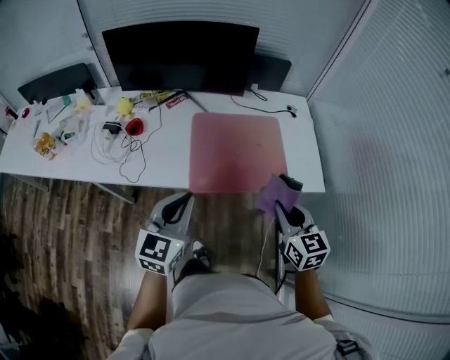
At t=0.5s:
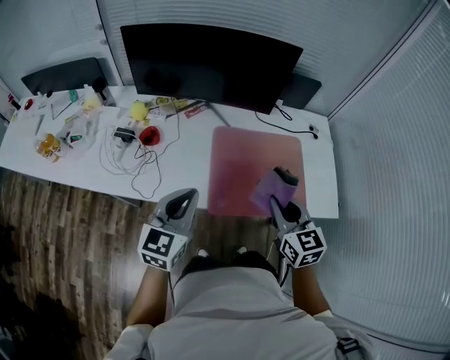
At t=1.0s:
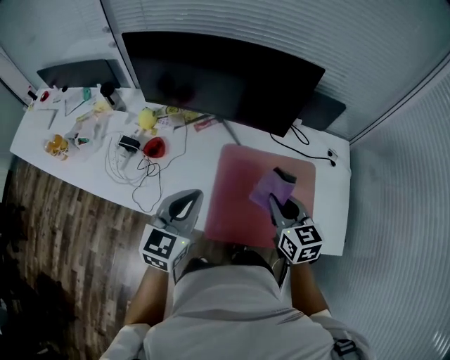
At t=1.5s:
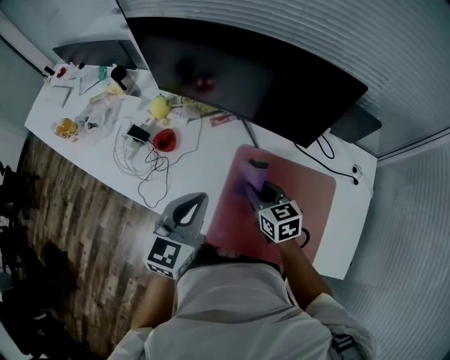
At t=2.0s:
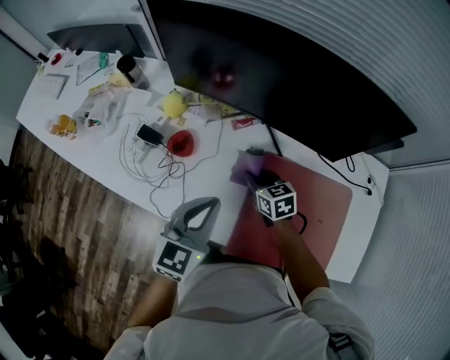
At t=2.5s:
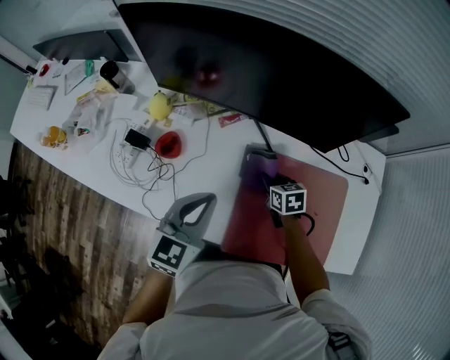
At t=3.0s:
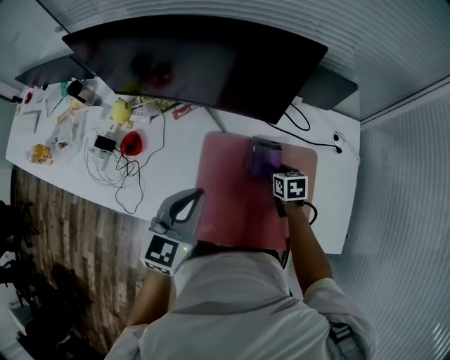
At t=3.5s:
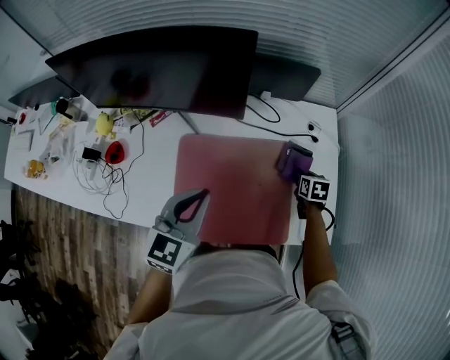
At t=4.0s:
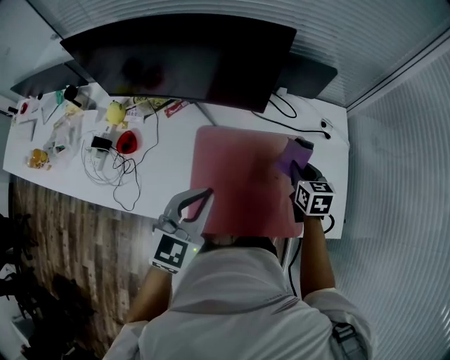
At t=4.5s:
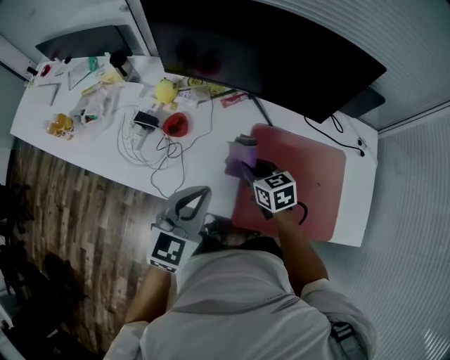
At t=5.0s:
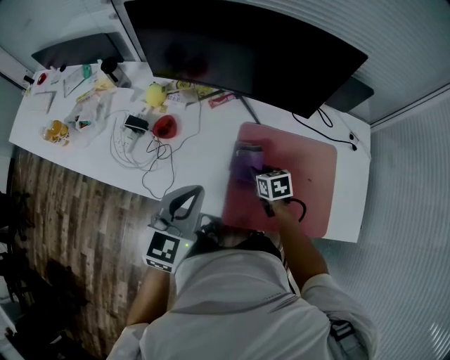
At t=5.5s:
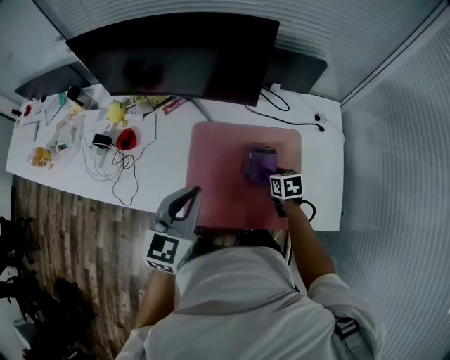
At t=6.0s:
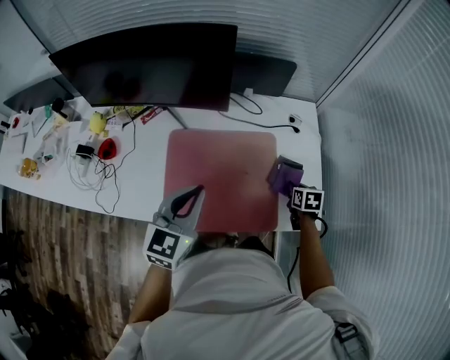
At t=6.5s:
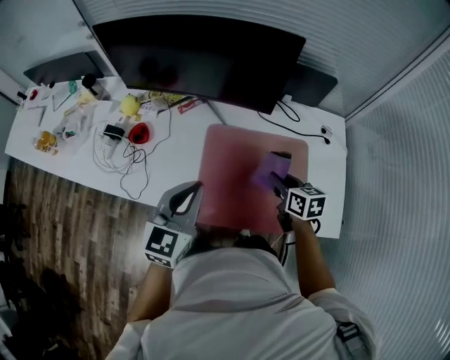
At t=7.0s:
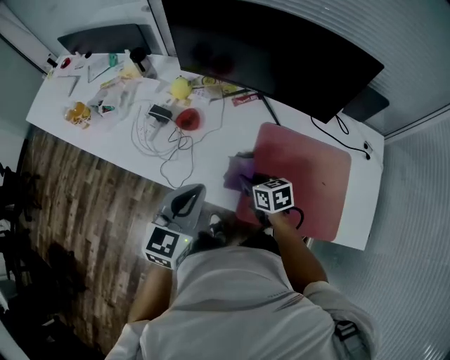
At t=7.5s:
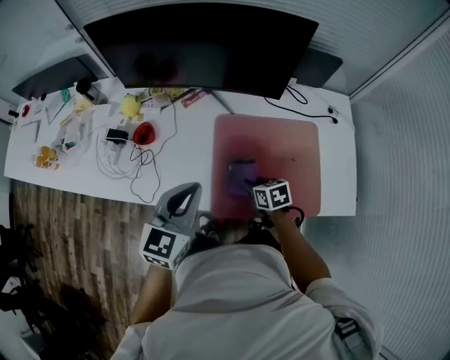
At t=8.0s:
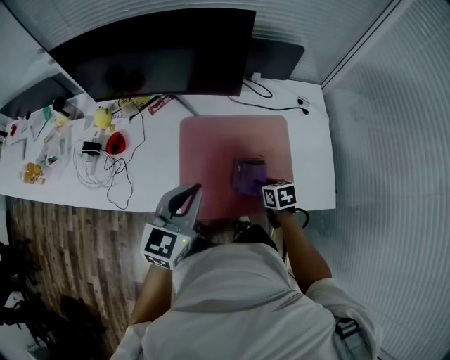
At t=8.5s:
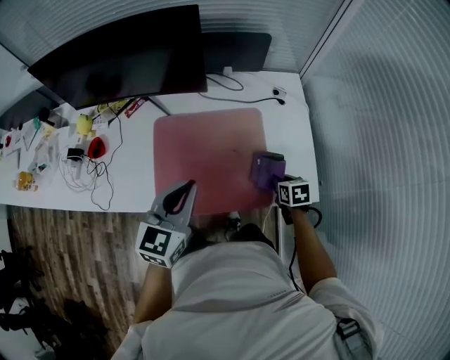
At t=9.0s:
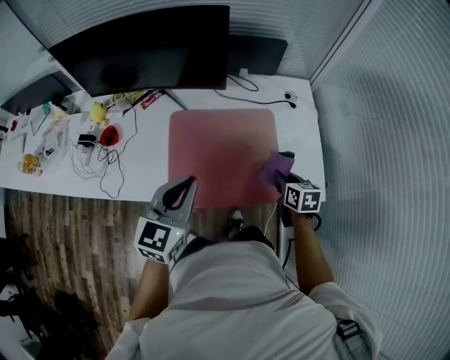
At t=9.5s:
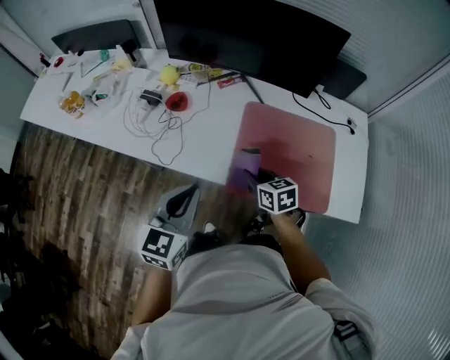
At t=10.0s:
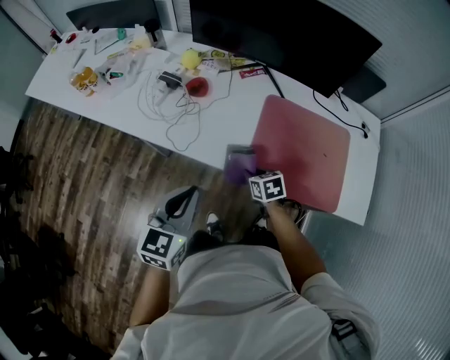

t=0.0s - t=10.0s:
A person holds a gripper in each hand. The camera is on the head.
t=0.0s - t=2.0s: The left gripper ends up roughly 35 cm from where it was. The right gripper changes place by about 60 cm, and turns by about 40 degrees.
t=2.0s - t=4.0s: The left gripper shifts by approximately 20 cm. Meanwhile the right gripper changes place by approximately 40 cm, and swivels approximately 30 degrees.
t=4.0s - t=6.0s: The right gripper heads downward and backward, covering about 15 cm, and travels to the left and back again, roughly 35 cm each way. Meanwhile the left gripper travels to the left and back again, approximately 20 cm each way.
t=6.0s - t=8.0s: The right gripper goes upward and returns, approximately 15 cm each way.
t=8.0s - t=10.0s: The right gripper goes upward and returns, roughly 10 cm each way, and turns by approximately 20 degrees. The left gripper shifts by about 30 cm, and changes its angle by approximately 20 degrees.

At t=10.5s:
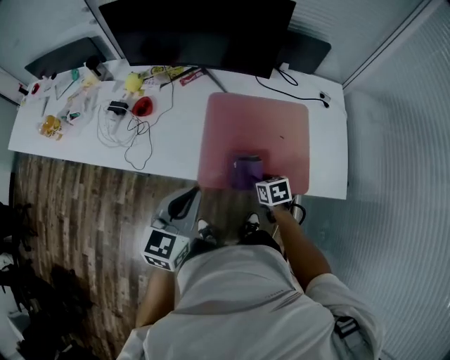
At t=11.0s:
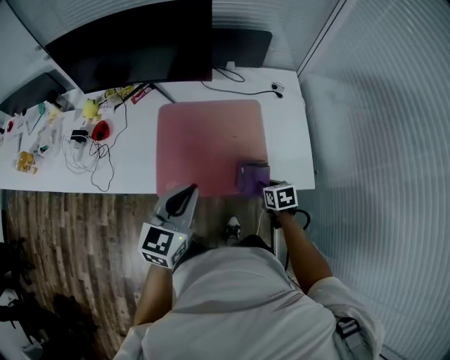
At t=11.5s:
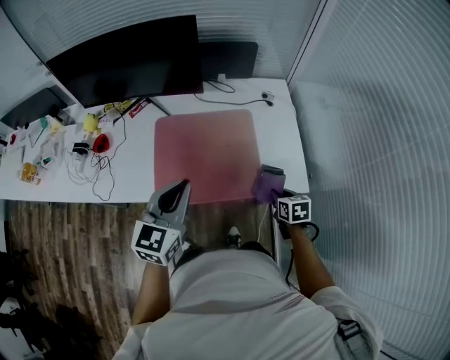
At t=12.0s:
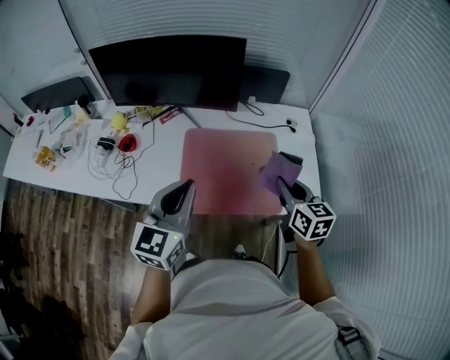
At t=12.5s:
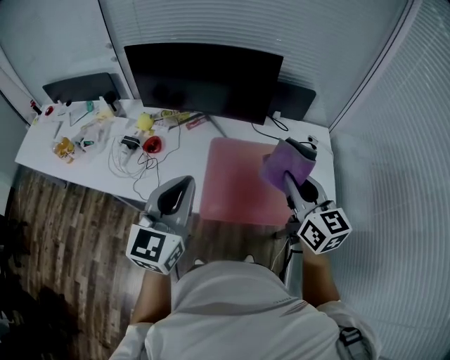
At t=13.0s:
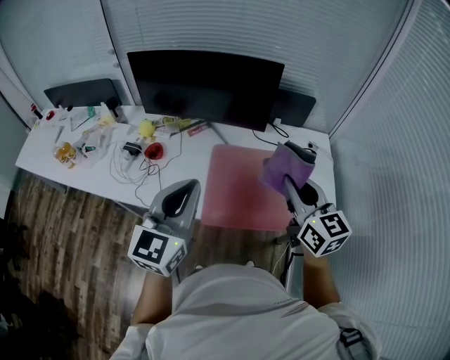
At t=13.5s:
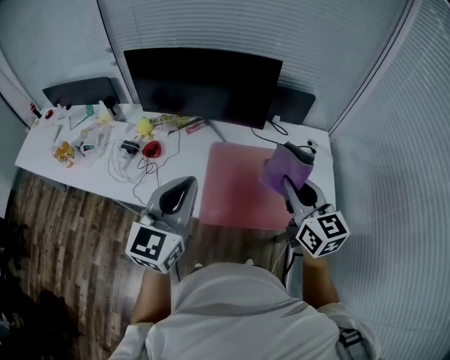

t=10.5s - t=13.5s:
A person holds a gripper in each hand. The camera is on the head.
t=10.5s - t=12.0s: The left gripper moves upward and to the right, some 15 cm, while the right gripper is displaced upward and to the right by some 30 cm, and tilts its fingers some 30 degrees upward.
t=12.0s - t=13.5s: The left gripper is displaced to the left and upward by some 10 cm. The right gripper travels upward and to the left by about 15 cm.

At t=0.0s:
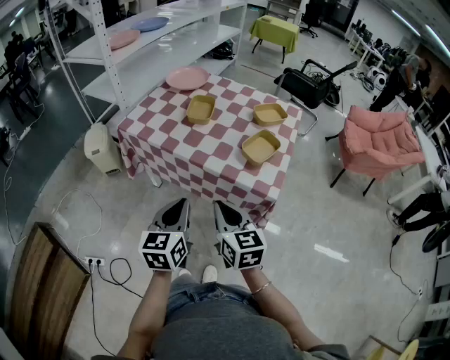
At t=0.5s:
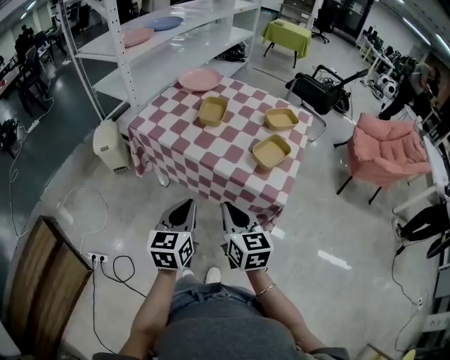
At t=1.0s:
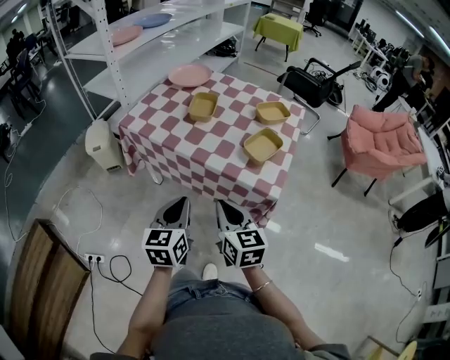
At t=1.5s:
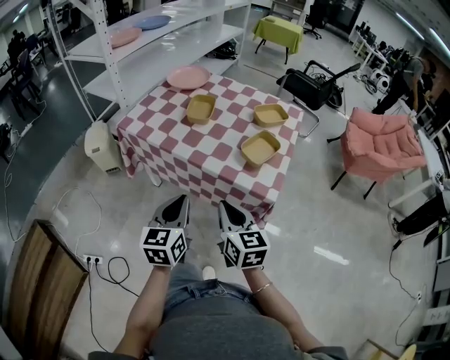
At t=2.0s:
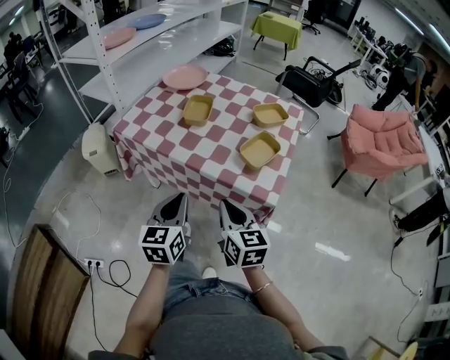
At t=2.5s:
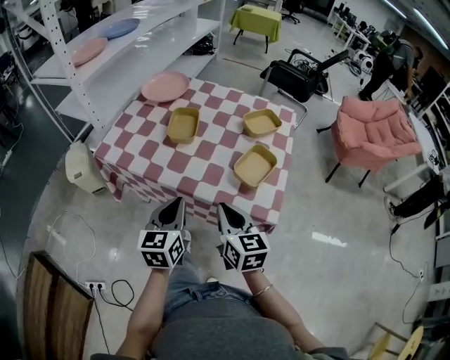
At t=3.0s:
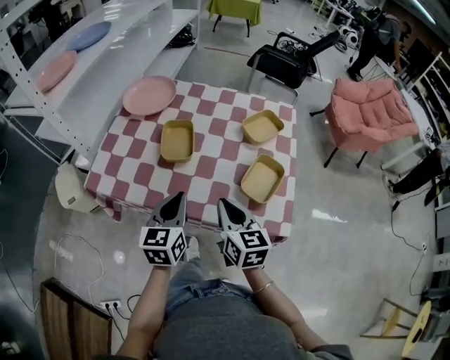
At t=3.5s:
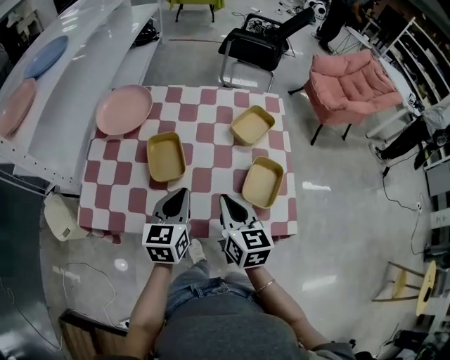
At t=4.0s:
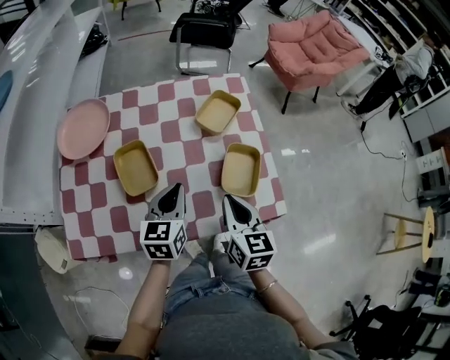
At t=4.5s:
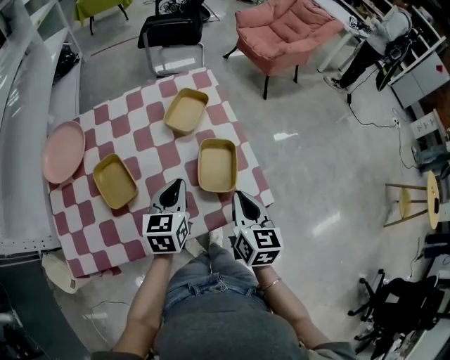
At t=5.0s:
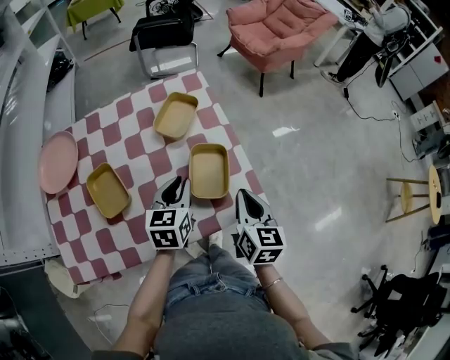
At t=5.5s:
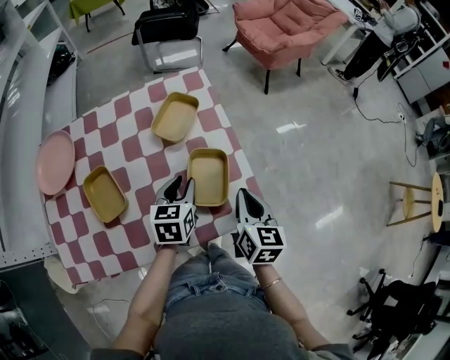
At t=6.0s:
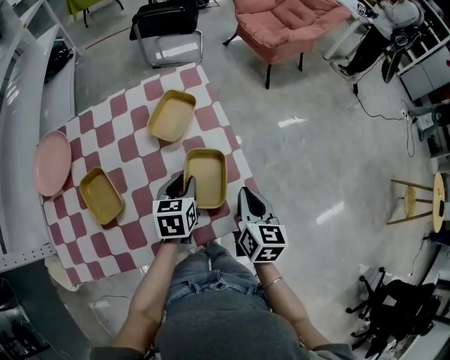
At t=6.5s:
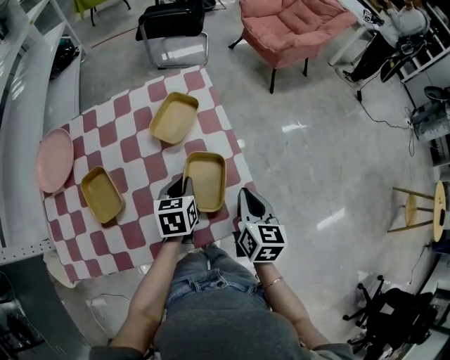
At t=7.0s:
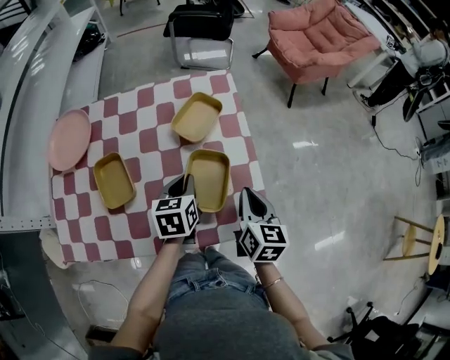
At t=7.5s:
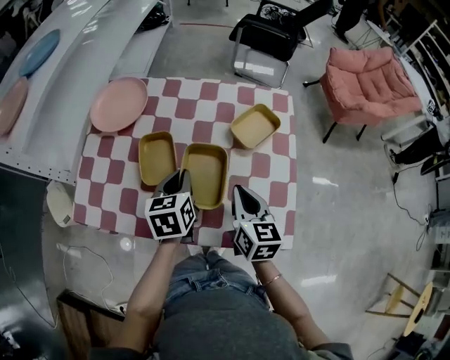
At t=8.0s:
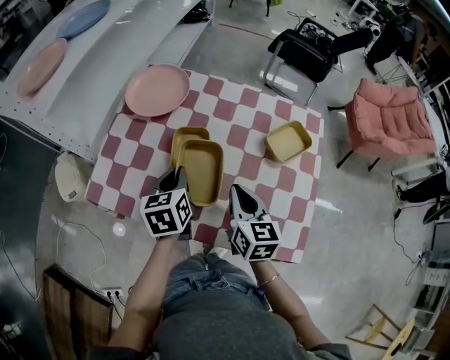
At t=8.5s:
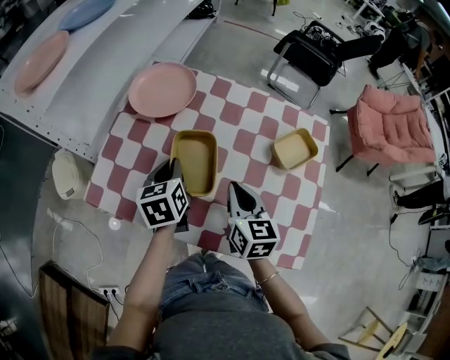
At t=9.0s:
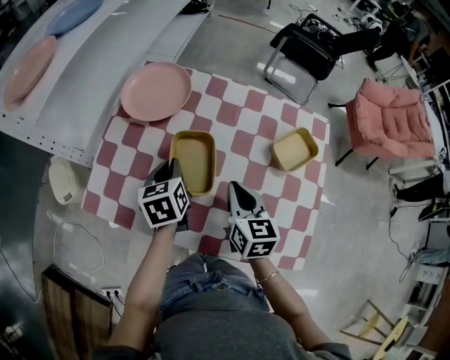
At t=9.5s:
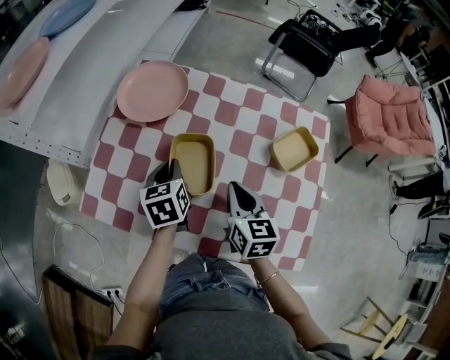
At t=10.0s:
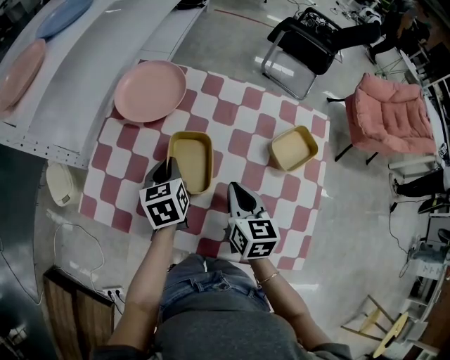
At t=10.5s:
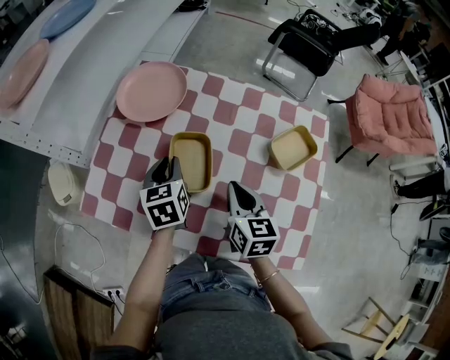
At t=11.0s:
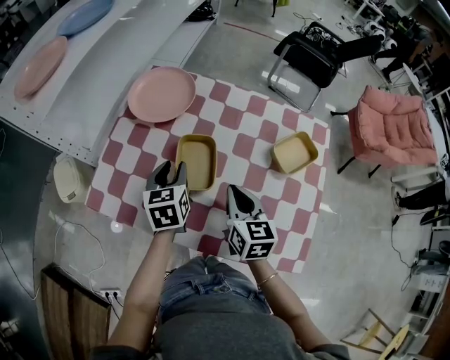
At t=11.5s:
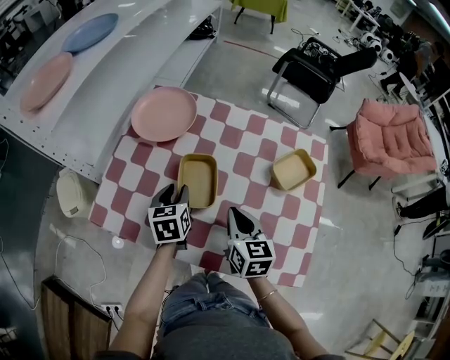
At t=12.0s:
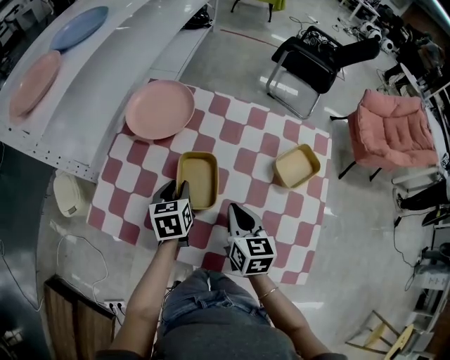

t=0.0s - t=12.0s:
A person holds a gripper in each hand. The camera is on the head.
t=0.0s - t=2.0s: The left gripper moves roughly 5 cm. The right gripper shifts by some 5 cm.
t=2.0s - t=4.0s: The left gripper moves about 35 cm, and swivels about 40 degrees. Meanwhile the right gripper ends up roughly 25 cm from where it was, and swivels some 40 degrees.
t=4.0s - t=6.0s: The left gripper moves to the right, forward and downward, about 20 cm, rotates about 20 degrees, and opens up. The right gripper travels to the right and forward by some 20 cm.
t=6.0s - t=8.0s: The right gripper ends up about 30 cm from where it was, and changes its angle by roughly 40 degrees, while the left gripper ends up roughly 30 cm from where it was, turns by about 50 degrees, and closes up.
t=8.0s - t=10.0s: Both grippers travel together forward, roughly 5 cm.
t=10.0s - t=12.0s: The left gripper opens.

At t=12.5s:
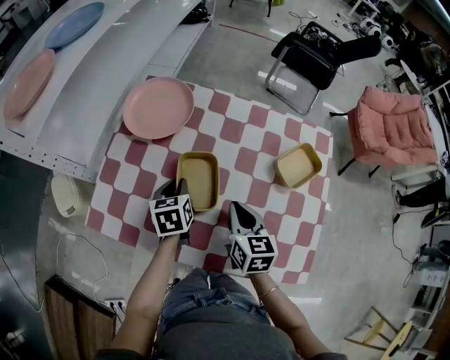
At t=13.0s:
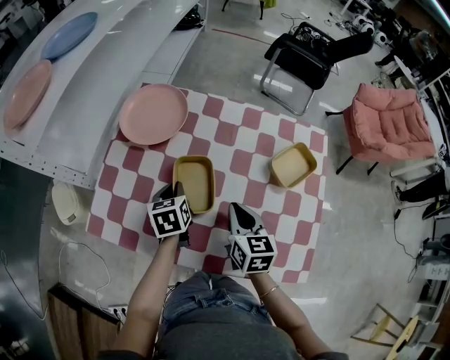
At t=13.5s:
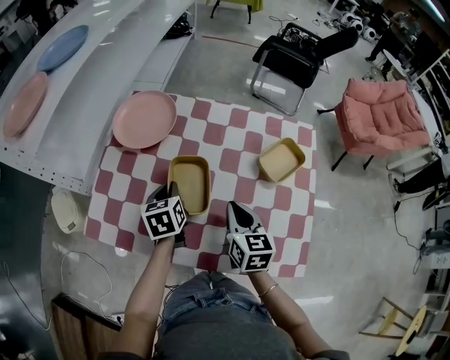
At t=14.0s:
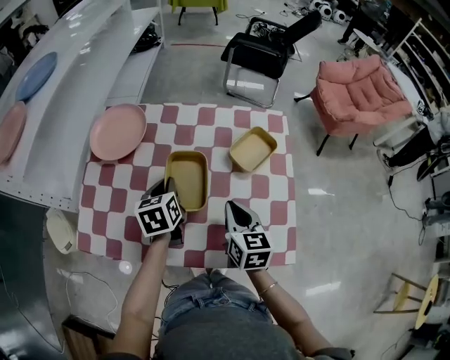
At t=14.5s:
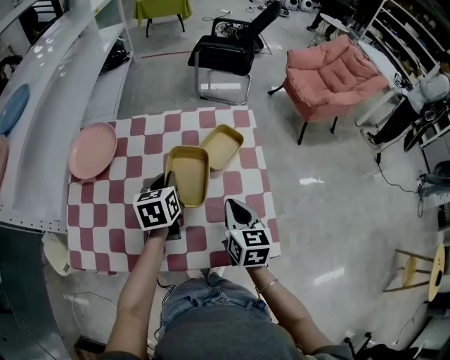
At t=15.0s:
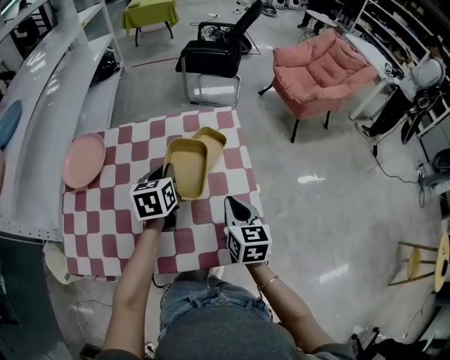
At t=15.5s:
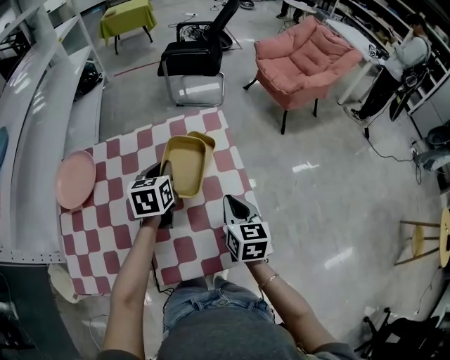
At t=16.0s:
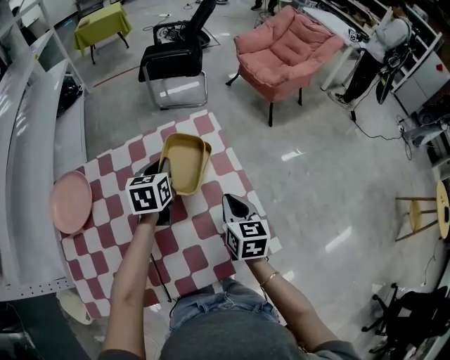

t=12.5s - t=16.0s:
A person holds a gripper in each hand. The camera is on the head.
t=12.5s - t=14.5s: The left gripper is displaced to the right and upward by about 20 cm, and rotates about 20 degrees; the right gripper heads to the right, covering about 20 cm.
t=14.5s - t=16.0s: The right gripper goes about 5 cm to the right. Meanwhile the left gripper travels forward and to the right by roughly 15 cm, and changes its angle by approximately 20 degrees.
